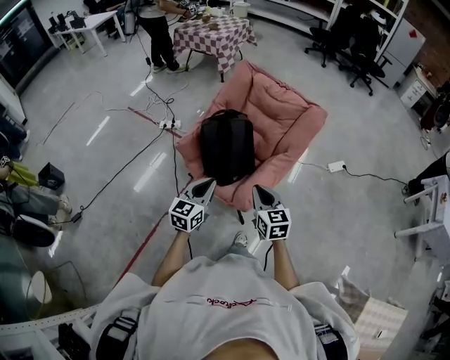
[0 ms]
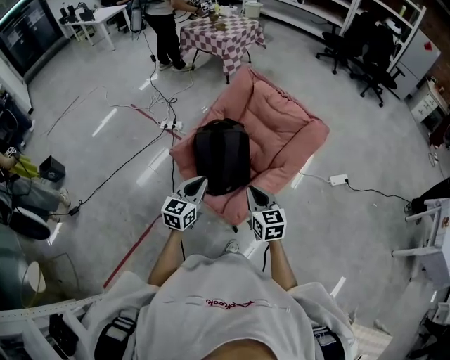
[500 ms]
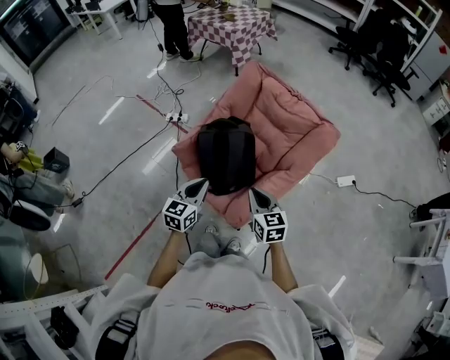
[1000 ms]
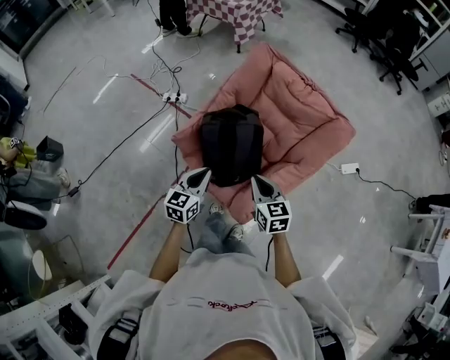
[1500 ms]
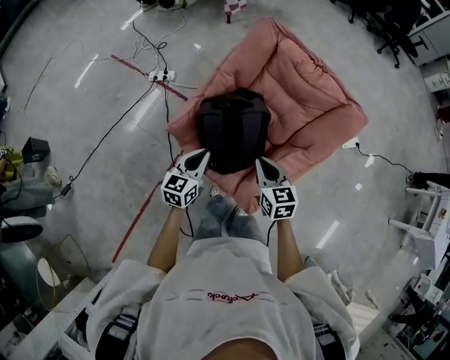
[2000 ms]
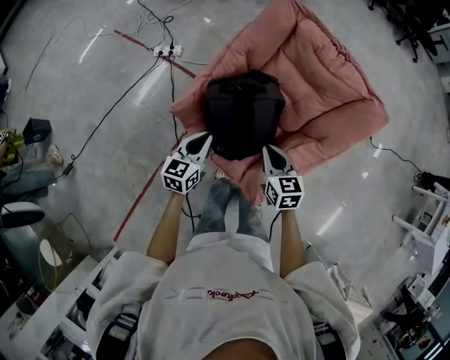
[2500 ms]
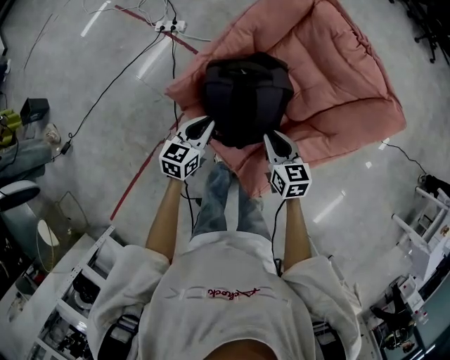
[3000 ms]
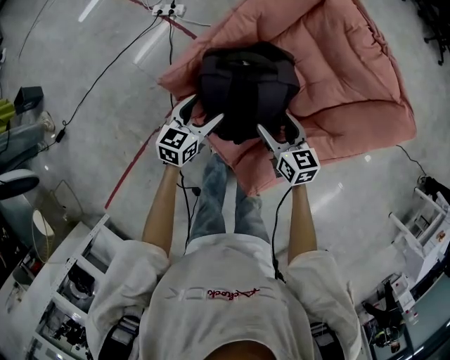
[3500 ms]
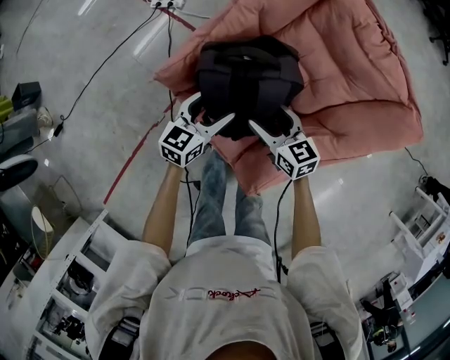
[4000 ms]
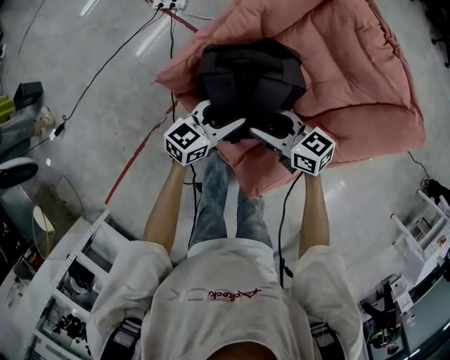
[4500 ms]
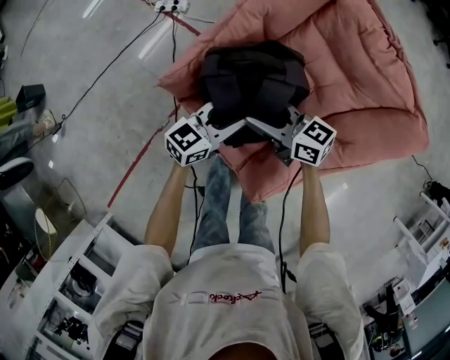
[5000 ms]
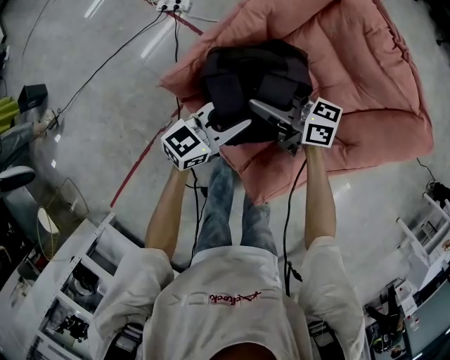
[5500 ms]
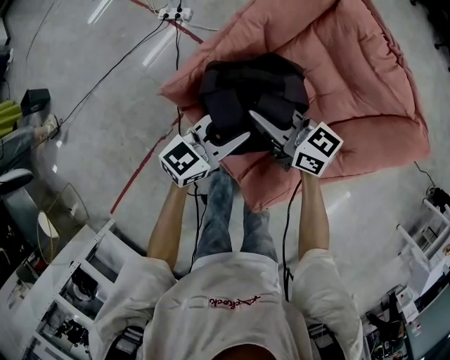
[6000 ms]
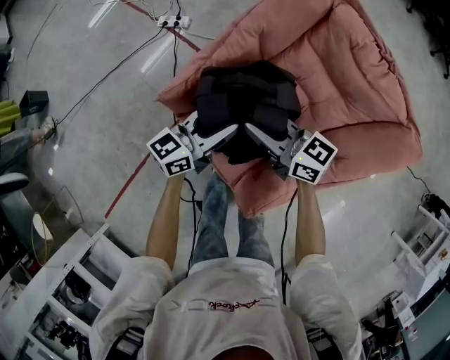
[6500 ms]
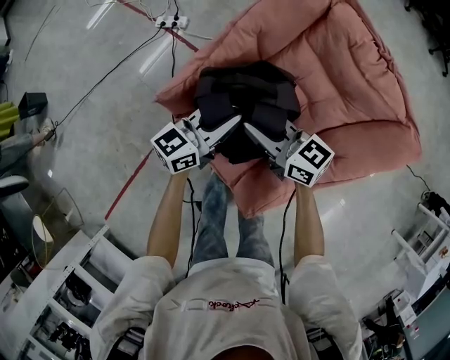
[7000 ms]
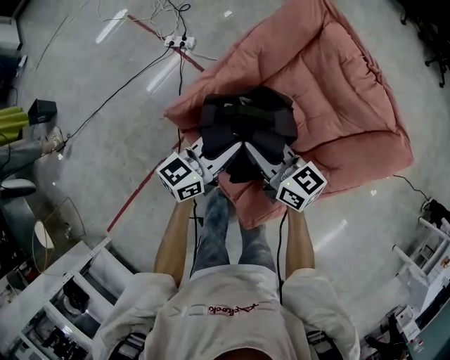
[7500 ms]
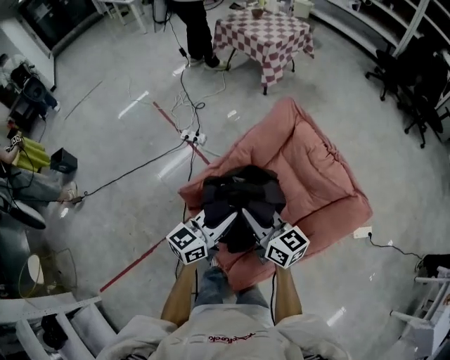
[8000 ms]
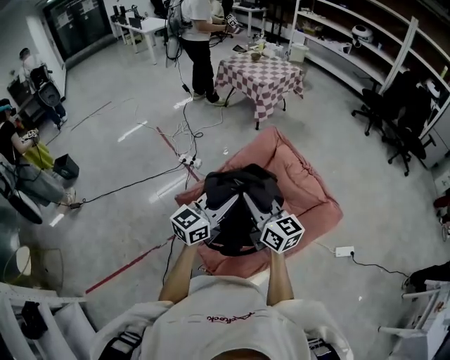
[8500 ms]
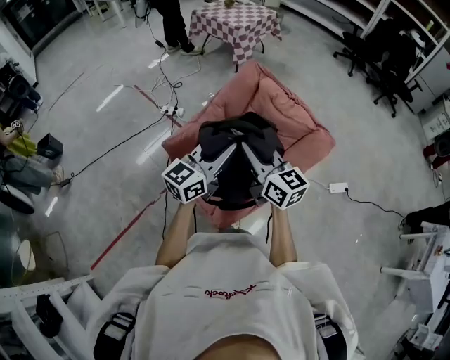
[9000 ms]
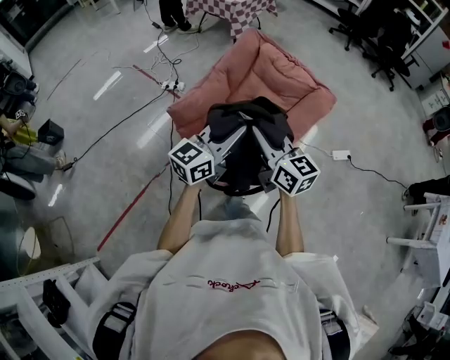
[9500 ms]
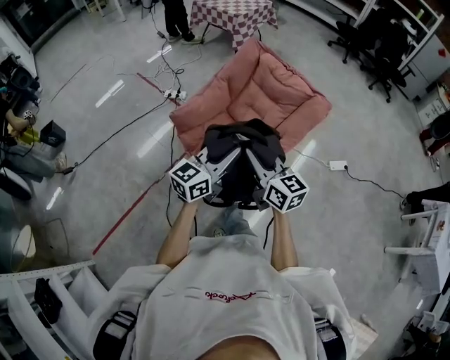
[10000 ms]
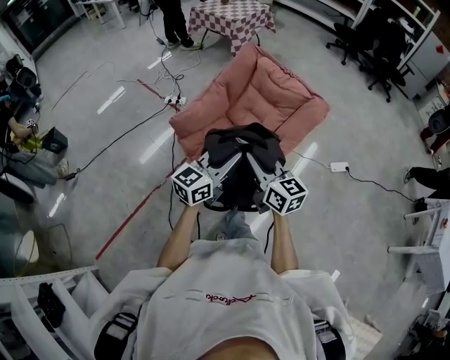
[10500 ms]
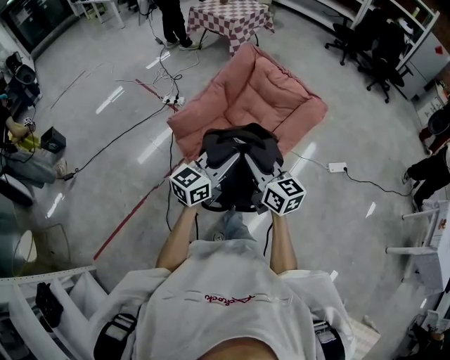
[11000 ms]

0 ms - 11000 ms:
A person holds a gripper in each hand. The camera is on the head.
0 ms - 2000 ms: Both grippers move forward and downward, roughly 30 cm.
2000 ms - 3500 ms: The two grippers go about 15 cm downward and forward. The right gripper opens its fingers, while the left gripper opens its fingers.
3500 ms - 5500 ms: The right gripper changes place by roughly 10 cm, turns by approximately 50 degrees, and closes up. Meanwhile the left gripper changes place by about 10 cm, rotates some 30 degrees, and closes.
5500 ms - 7500 ms: Both grippers travel together upward, about 5 cm. The right gripper swivels roughly 20 degrees.
7500 ms - 9000 ms: Both grippers move upward and backward, about 30 cm. The left gripper swivels about 20 degrees, while the right gripper turns by about 20 degrees.
9000 ms - 11000 ms: Both grippers move backward, roughly 20 cm.

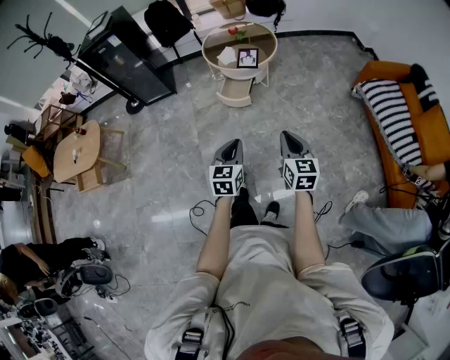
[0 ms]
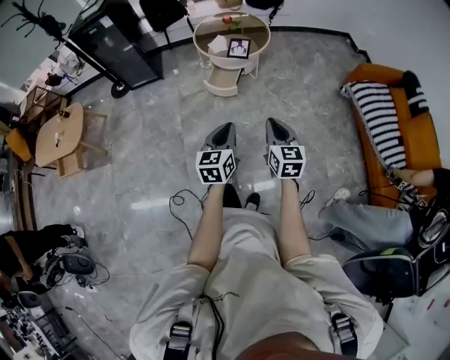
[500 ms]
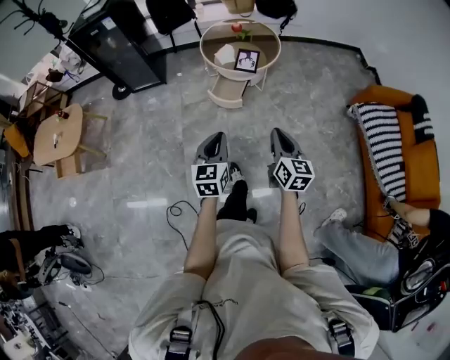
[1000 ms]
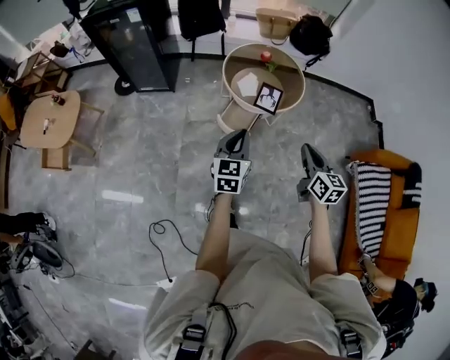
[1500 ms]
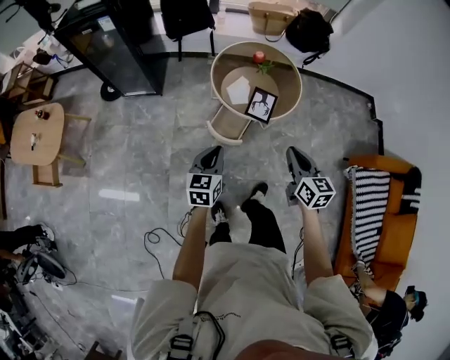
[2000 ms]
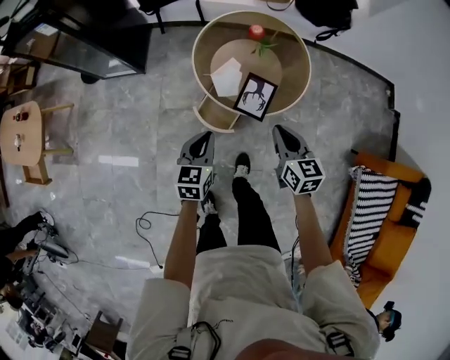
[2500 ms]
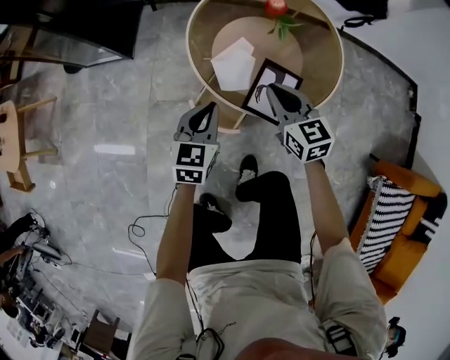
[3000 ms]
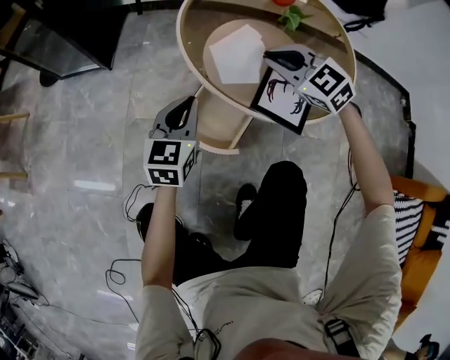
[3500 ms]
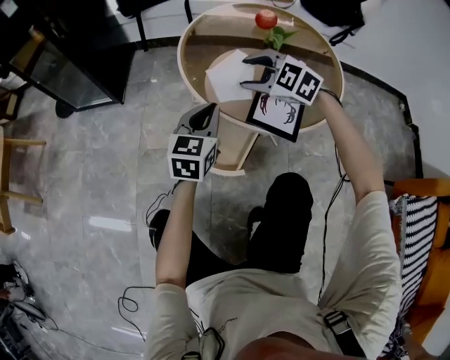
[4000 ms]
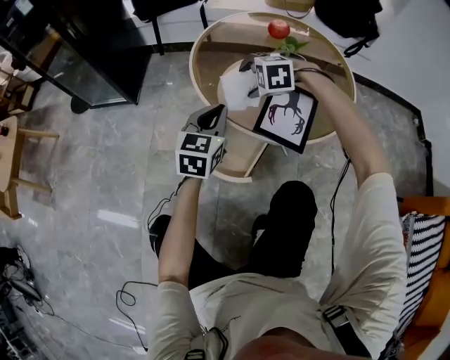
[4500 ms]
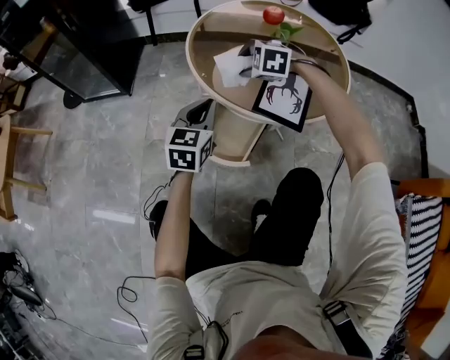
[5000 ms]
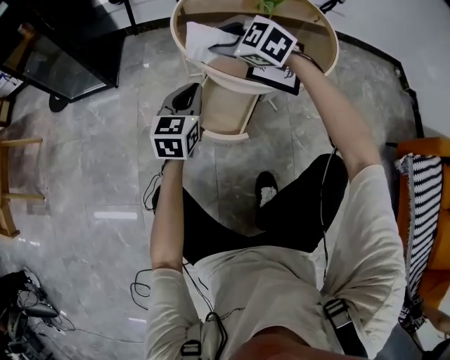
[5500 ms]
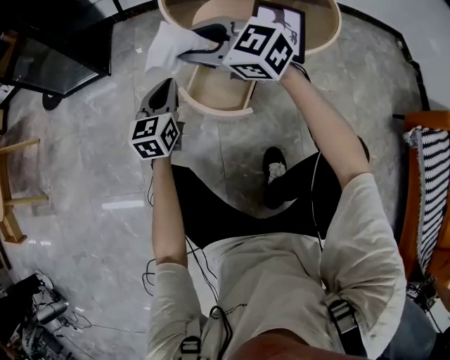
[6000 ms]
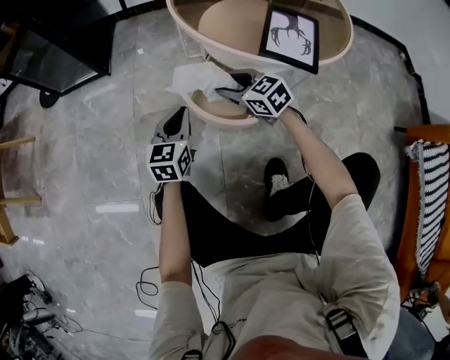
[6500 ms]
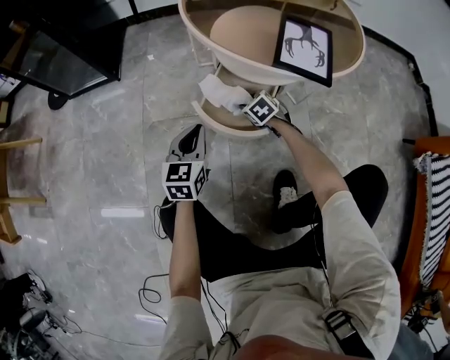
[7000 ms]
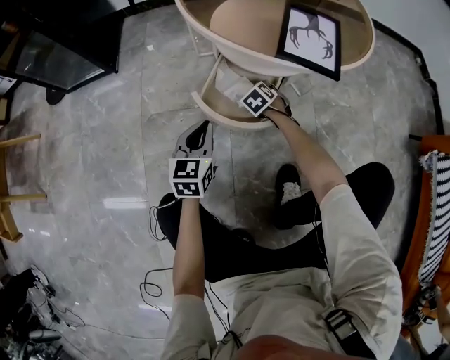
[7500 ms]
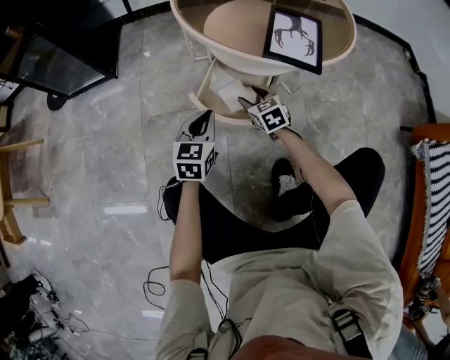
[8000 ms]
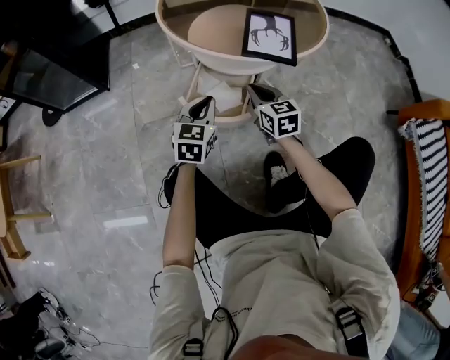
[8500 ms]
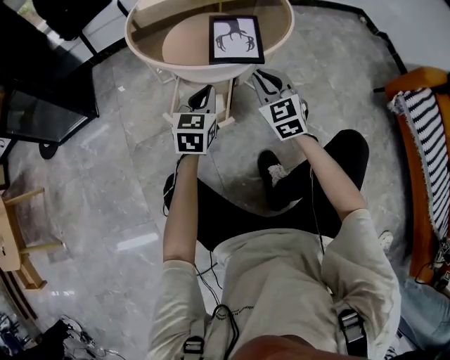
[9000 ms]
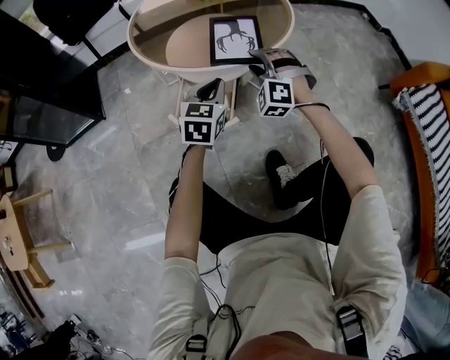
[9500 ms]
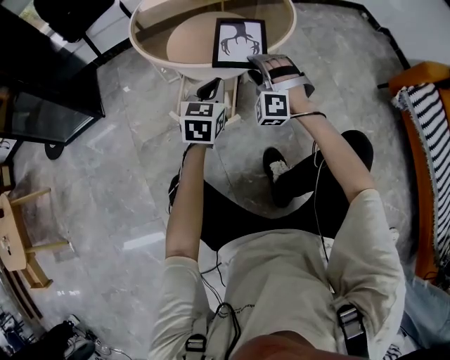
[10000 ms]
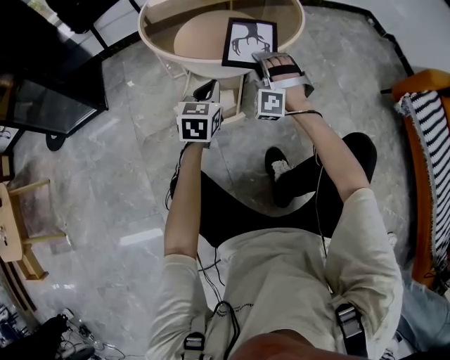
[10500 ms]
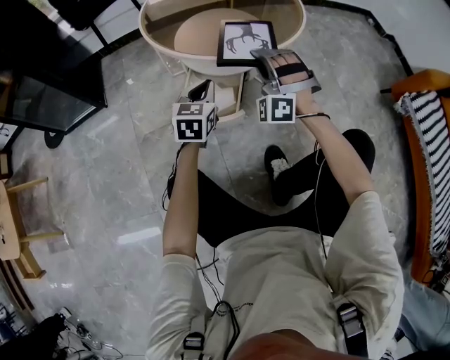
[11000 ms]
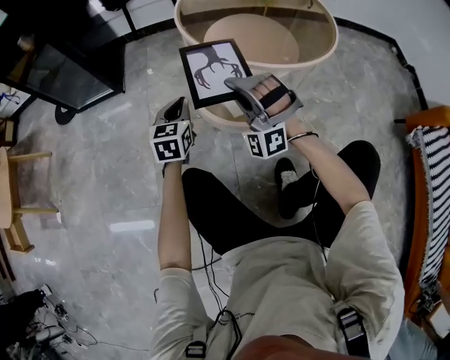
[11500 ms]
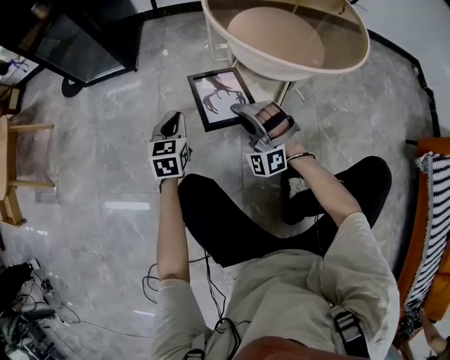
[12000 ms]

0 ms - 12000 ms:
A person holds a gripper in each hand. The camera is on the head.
0 ms - 2000 ms: Both grippers are carried forward, approximately 50 cm.
2000 ms - 4000 ms: The grippers both shift downward and forward by some 60 cm. The right gripper rolls counterclockwise, seen from behind, by some 70 degrees, and opens.
4000 ms - 6000 ms: The left gripper moves to the left and downward, roughly 15 cm; the right gripper travels to the left and backward by about 20 cm, and swivels approximately 30 degrees.
6000 ms - 8000 ms: The right gripper goes about 30 cm downward, and changes its angle by about 40 degrees. Meanwhile the left gripper moves downward and backward, about 10 cm.
8000 ms - 10000 ms: The right gripper moves upward and to the right, roughly 20 cm, rotates around the line of its fingers by some 60 degrees, counterclockwise from behind, and closes and opens again. The left gripper is displaced upward, to the right and forward by about 20 cm.
10000 ms - 12000 ms: The right gripper changes place by roughly 25 cm, changes its angle by roughly 40 degrees, and closes up. The left gripper changes place by some 30 cm, and swivels some 30 degrees.

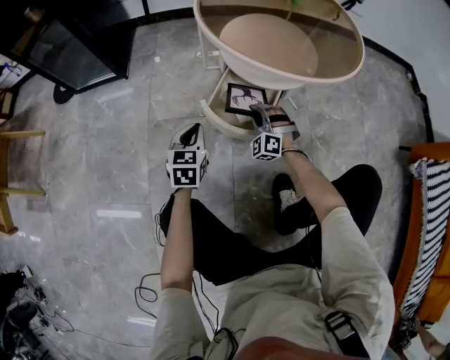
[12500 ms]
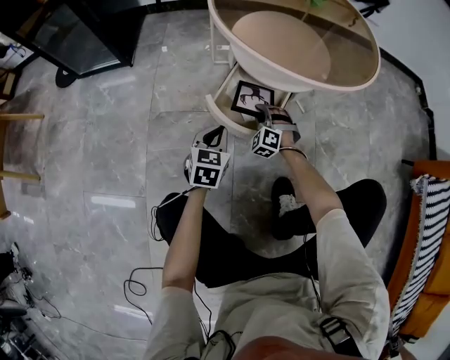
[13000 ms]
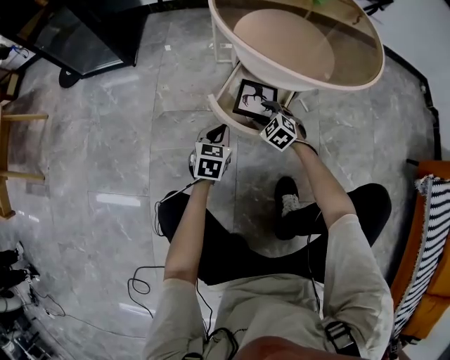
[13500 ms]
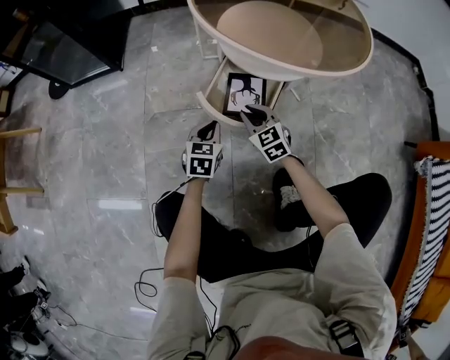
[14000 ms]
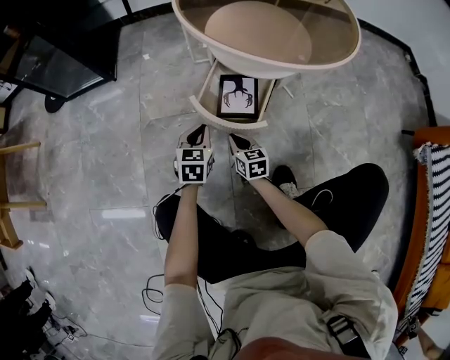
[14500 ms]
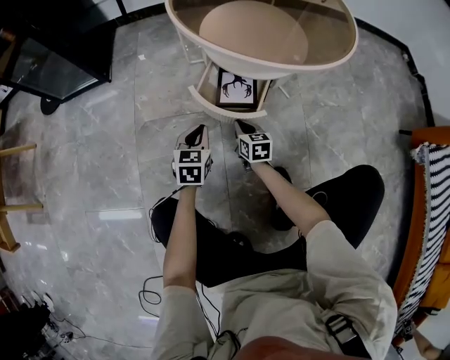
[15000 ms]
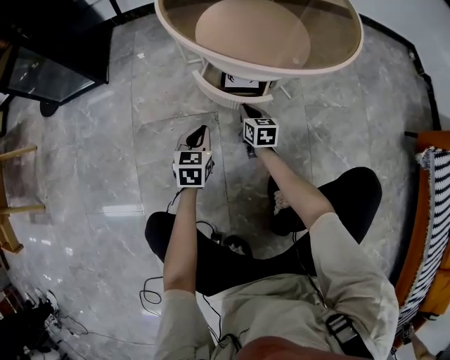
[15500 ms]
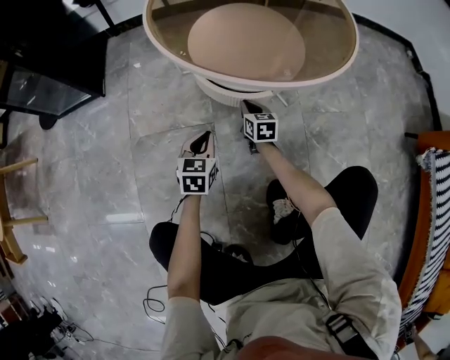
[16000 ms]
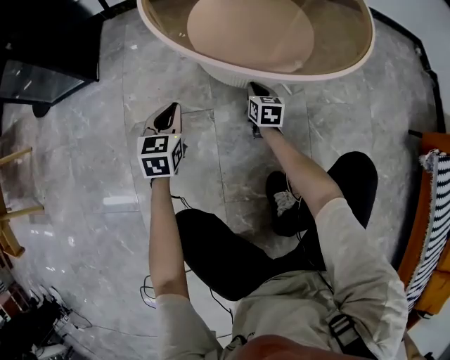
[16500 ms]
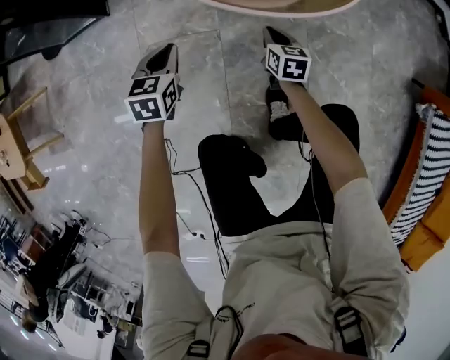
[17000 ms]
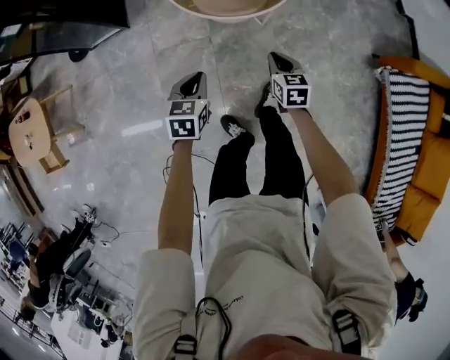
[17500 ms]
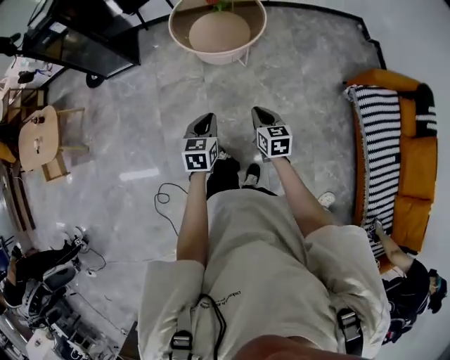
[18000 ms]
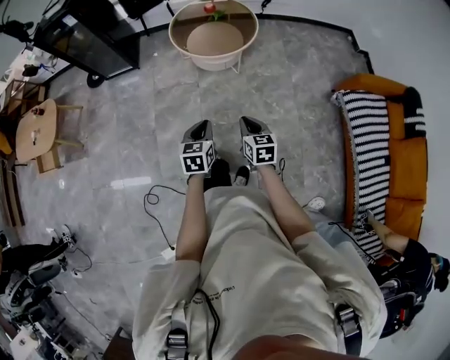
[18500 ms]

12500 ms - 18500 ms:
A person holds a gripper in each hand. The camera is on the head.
12500 ms - 14500 ms: The right gripper shifts some 10 cm backward and downward, rolls clockwise, seen from behind, by some 80 degrees, and opens, then closes again, while the left gripper goes approximately 5 cm downward.
14500 ms - 16500 ms: The left gripper shifts approximately 10 cm forward; the right gripper travels forward and to the right by approximately 25 cm.
16500 ms - 18500 ms: The pair of grippers is taken backward, approximately 60 cm. The two grippers go roughly 70 cm upward.
